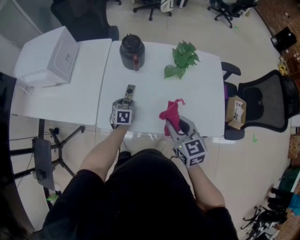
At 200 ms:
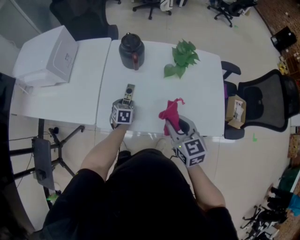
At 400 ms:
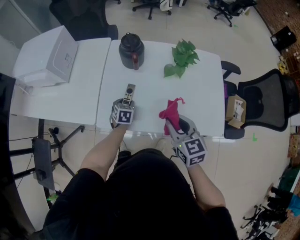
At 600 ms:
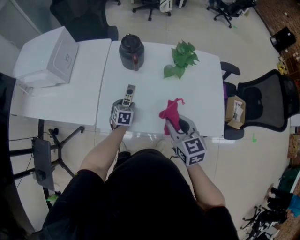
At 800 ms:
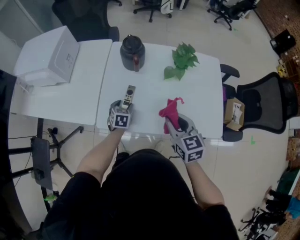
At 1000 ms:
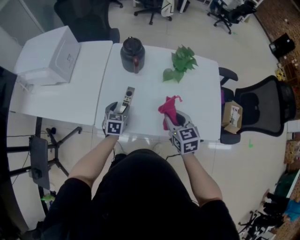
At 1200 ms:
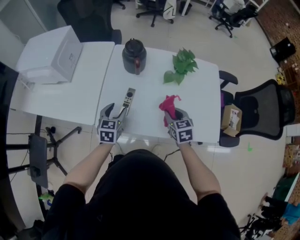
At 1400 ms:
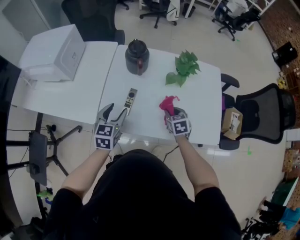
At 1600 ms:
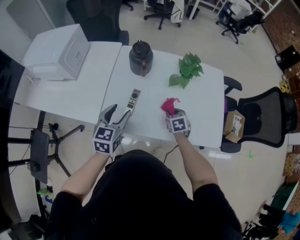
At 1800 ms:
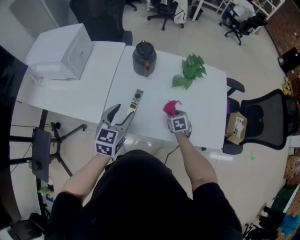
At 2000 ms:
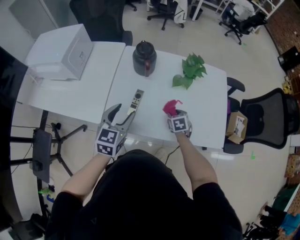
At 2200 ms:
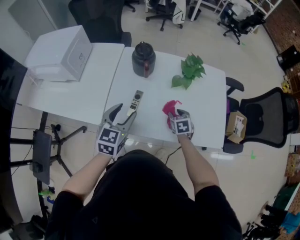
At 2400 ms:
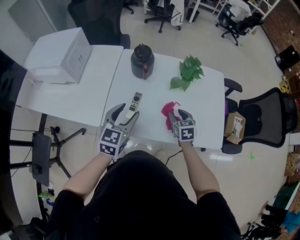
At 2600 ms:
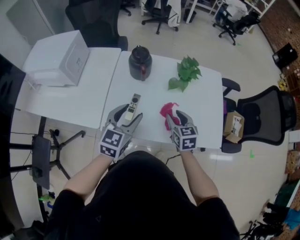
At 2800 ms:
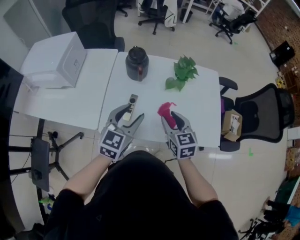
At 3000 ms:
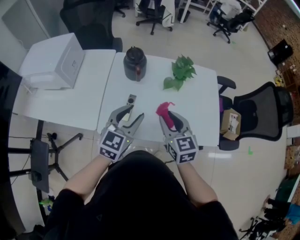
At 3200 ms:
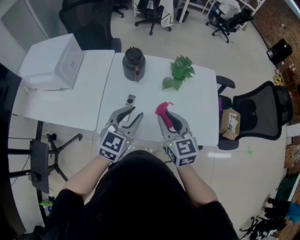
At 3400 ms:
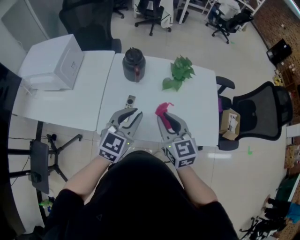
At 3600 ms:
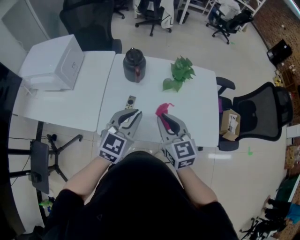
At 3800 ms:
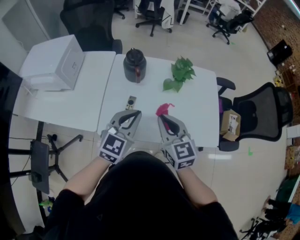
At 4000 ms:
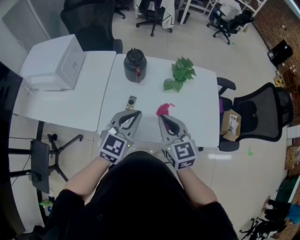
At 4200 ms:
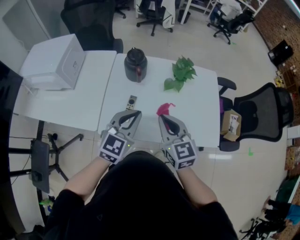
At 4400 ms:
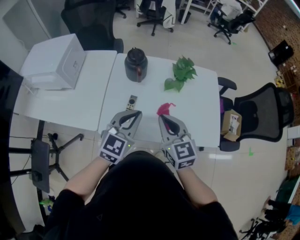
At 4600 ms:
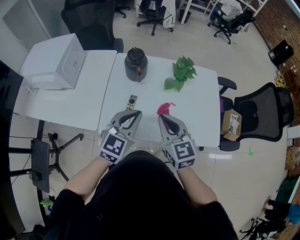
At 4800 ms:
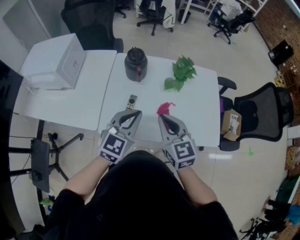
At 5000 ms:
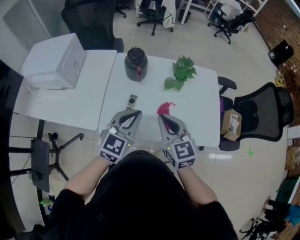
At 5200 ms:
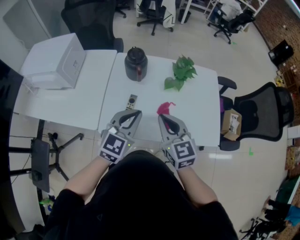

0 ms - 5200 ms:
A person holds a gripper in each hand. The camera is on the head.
0 ms - 1800 ms: The left gripper heads upward, covering some 20 cm, and changes its angle by roughly 30 degrees; the right gripper is displaced downward and forward by roughly 25 cm, and tips its fingers downward by about 30 degrees.
1800 ms - 3400 ms: The left gripper shifts roughly 10 cm to the right and upward, turns by roughly 20 degrees, and closes, while the right gripper is displaced upward by about 25 cm, and angles its fingers upward, by about 40 degrees.
3400 ms - 5200 ms: Both grippers stay about where they are.

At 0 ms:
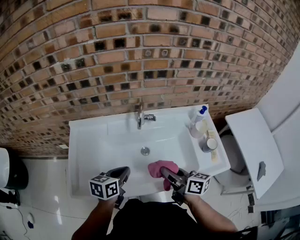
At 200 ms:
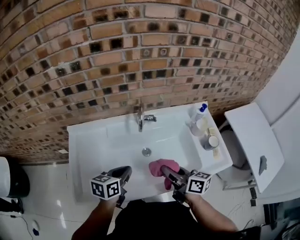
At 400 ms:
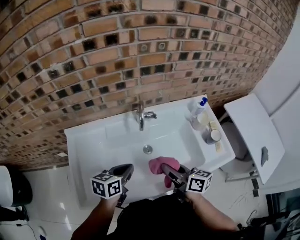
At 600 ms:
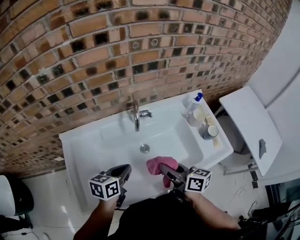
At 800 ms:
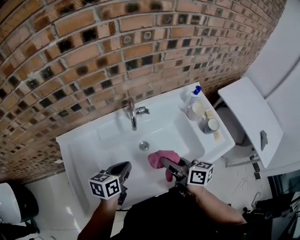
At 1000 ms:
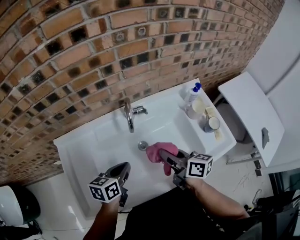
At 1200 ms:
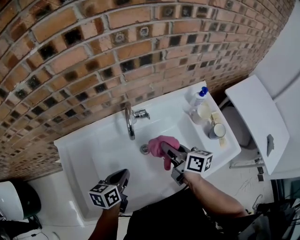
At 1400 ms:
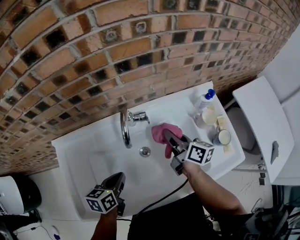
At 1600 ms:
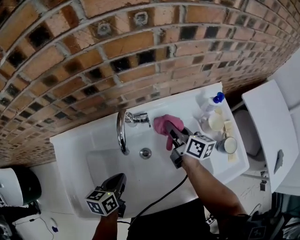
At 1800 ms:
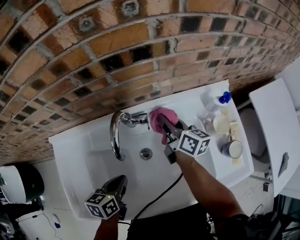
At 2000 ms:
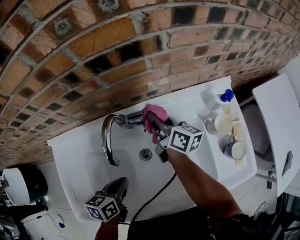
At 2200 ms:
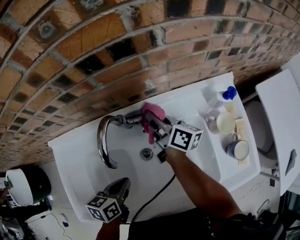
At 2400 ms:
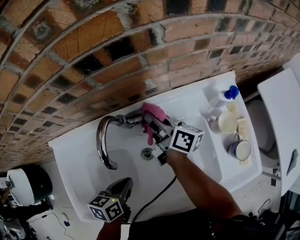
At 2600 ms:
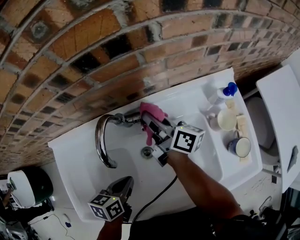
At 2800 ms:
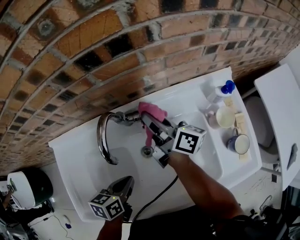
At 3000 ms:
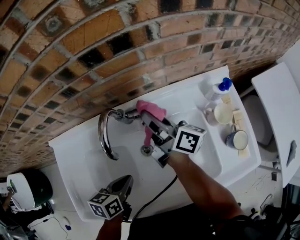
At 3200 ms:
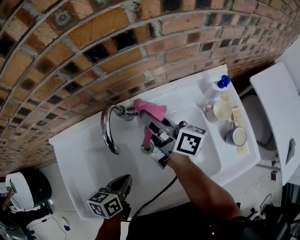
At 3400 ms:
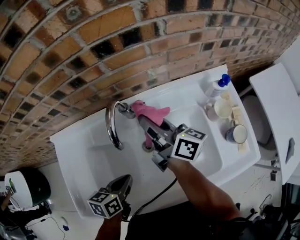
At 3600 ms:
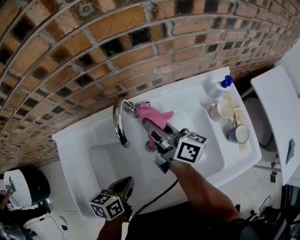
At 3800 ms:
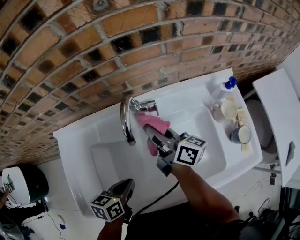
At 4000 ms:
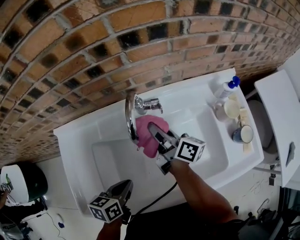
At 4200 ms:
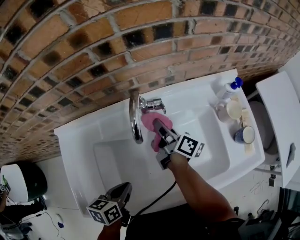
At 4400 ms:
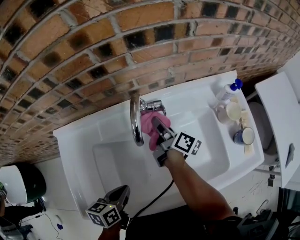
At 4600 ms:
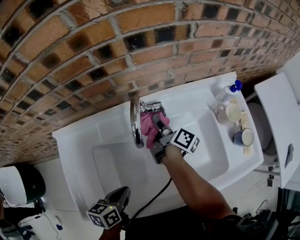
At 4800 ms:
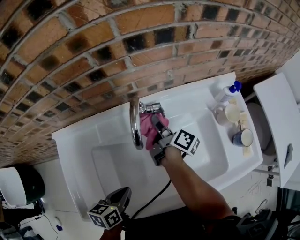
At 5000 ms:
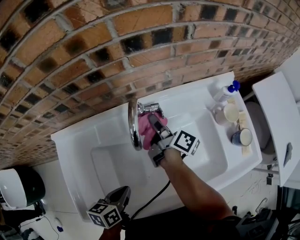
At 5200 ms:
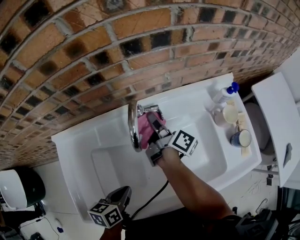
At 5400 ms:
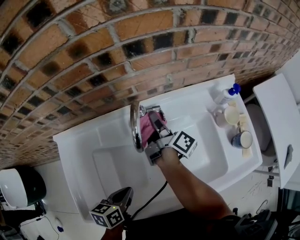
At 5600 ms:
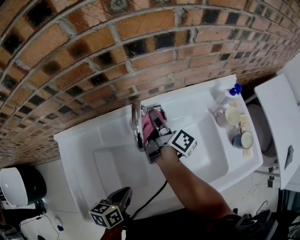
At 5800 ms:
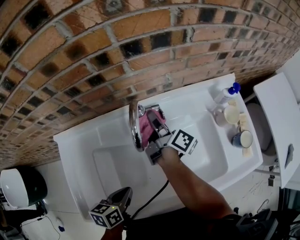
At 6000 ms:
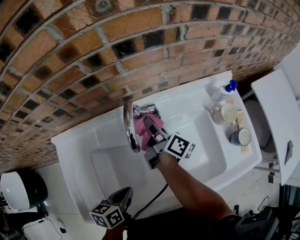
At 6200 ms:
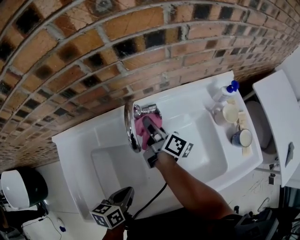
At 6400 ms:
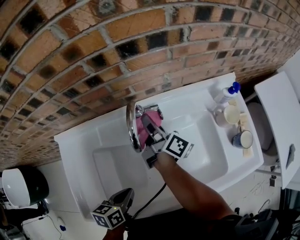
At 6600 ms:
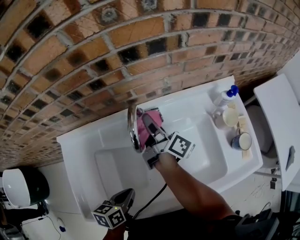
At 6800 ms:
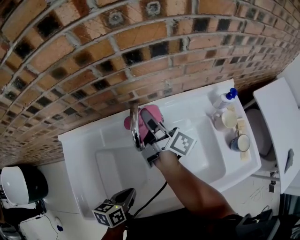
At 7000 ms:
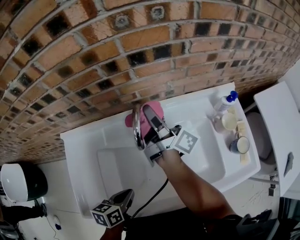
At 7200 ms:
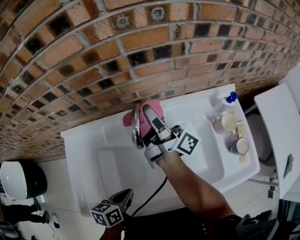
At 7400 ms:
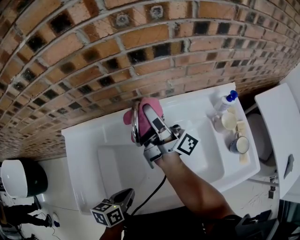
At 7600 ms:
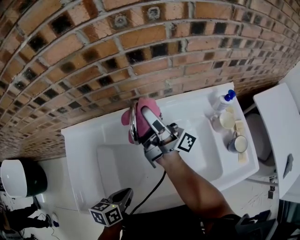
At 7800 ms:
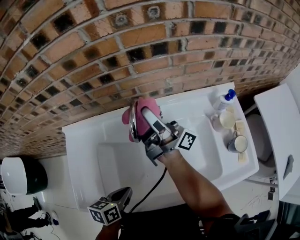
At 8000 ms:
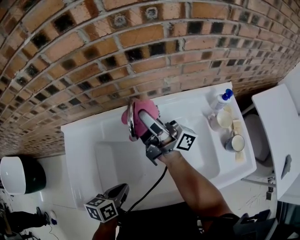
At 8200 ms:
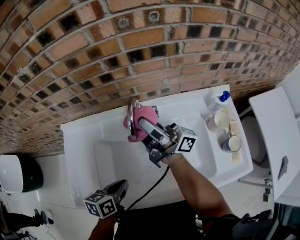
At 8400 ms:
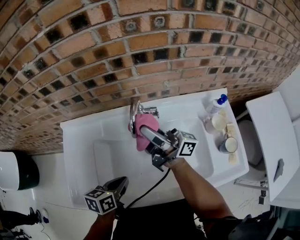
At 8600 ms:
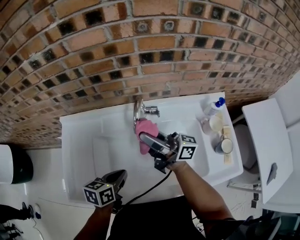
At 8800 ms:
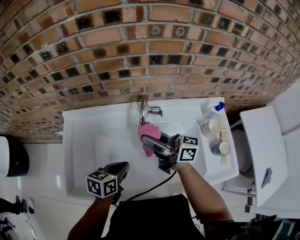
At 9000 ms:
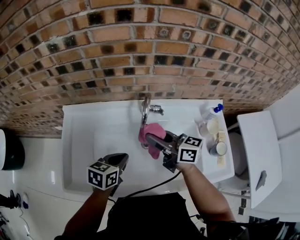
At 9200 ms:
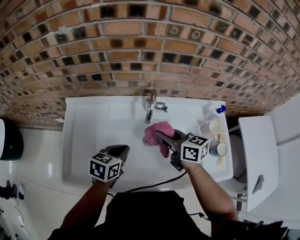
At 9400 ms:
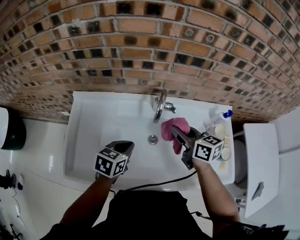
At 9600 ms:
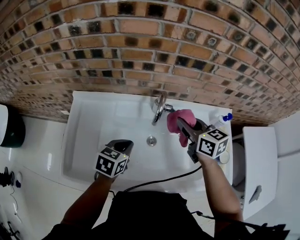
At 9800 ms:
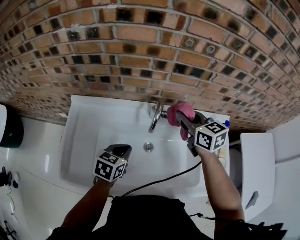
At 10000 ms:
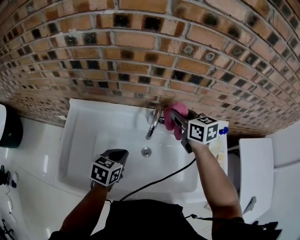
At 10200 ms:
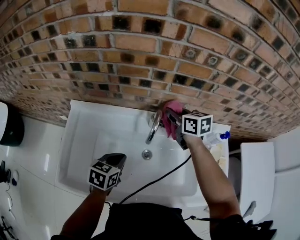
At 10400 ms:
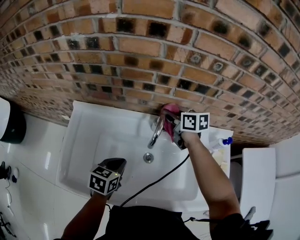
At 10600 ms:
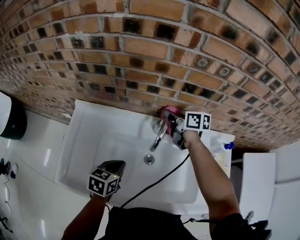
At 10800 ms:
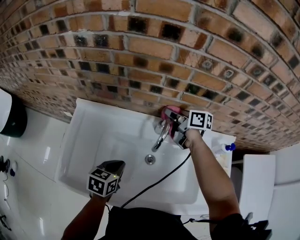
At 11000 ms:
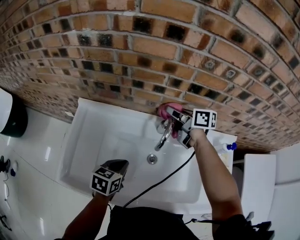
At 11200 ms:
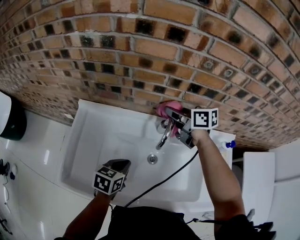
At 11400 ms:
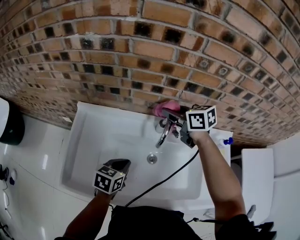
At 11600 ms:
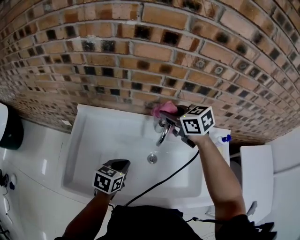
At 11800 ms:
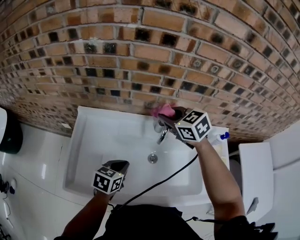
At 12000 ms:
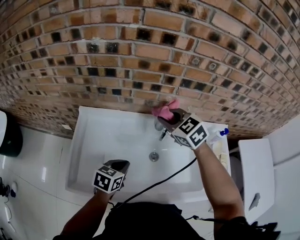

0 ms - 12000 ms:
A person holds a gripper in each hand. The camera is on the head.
0 ms - 1600 ms: The right gripper travels forward by roughly 30 cm. Meanwhile the left gripper moves forward and downward, about 15 cm.
1600 ms - 3000 ms: The right gripper is displaced to the left by about 5 cm, and turns by approximately 20 degrees.
3000 ms - 4400 ms: The left gripper travels to the left and backward by approximately 10 cm; the right gripper goes roughly 10 cm downward.
6000 ms - 7600 ms: The right gripper goes approximately 15 cm upward, and angles its fingers upward, by some 40 degrees.
7600 ms - 9000 ms: The left gripper goes some 10 cm forward and upward. Meanwhile the right gripper travels backward by roughly 10 cm, and angles its fingers downward, by approximately 40 degrees.
9000 ms - 10400 ms: The right gripper is displaced forward by some 20 cm, and changes its angle by approximately 30 degrees.
10400 ms - 12000 ms: The right gripper moves backward, to the left and upward, roughly 15 cm, and rotates around the line of its fingers by approximately 50 degrees, counterclockwise from behind. The left gripper ends up roughly 5 cm from where it was.

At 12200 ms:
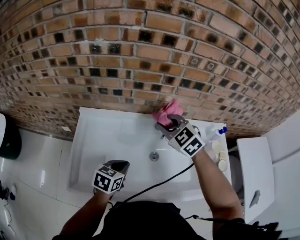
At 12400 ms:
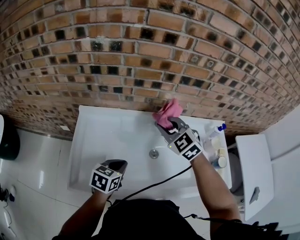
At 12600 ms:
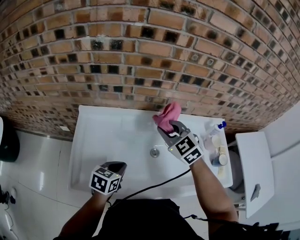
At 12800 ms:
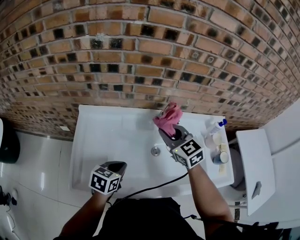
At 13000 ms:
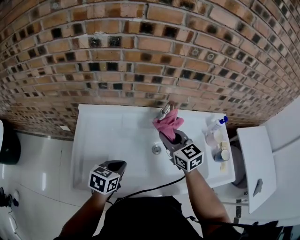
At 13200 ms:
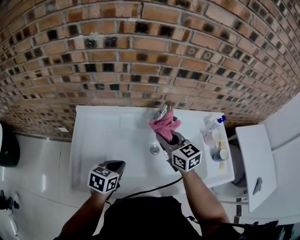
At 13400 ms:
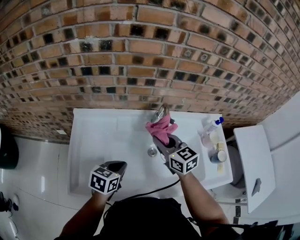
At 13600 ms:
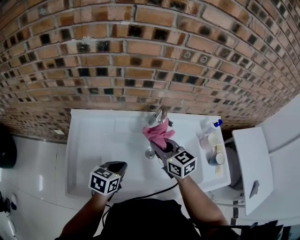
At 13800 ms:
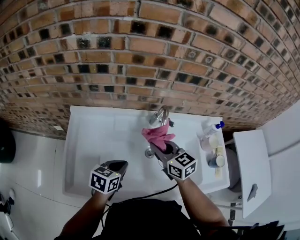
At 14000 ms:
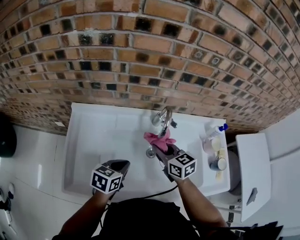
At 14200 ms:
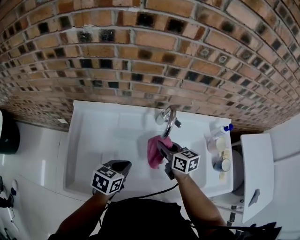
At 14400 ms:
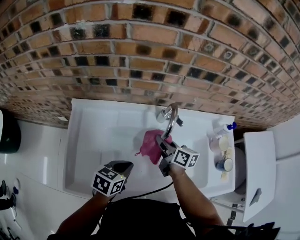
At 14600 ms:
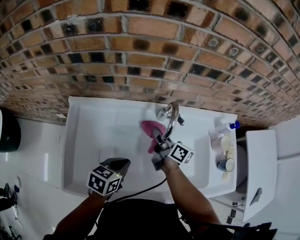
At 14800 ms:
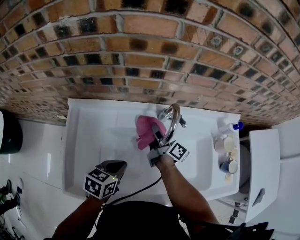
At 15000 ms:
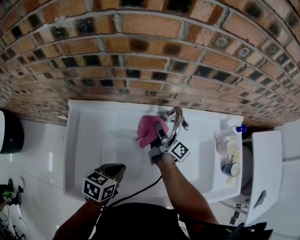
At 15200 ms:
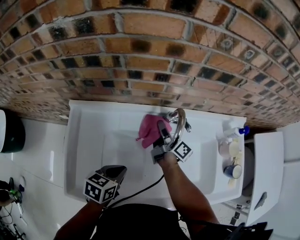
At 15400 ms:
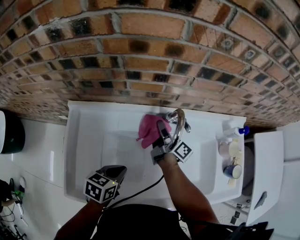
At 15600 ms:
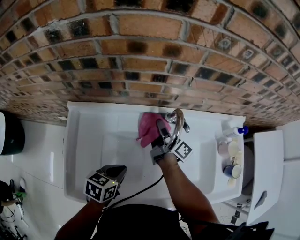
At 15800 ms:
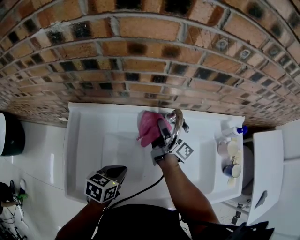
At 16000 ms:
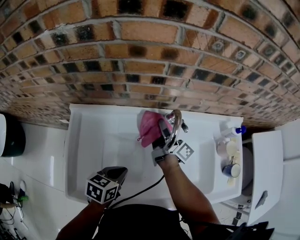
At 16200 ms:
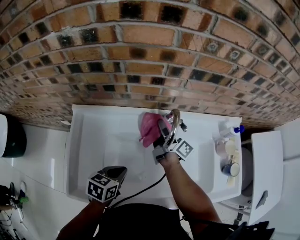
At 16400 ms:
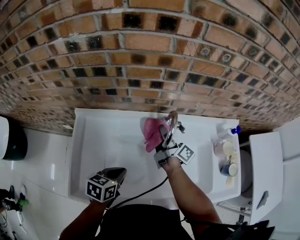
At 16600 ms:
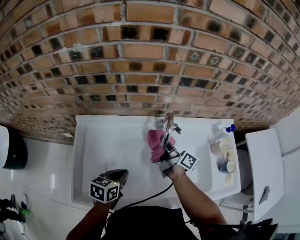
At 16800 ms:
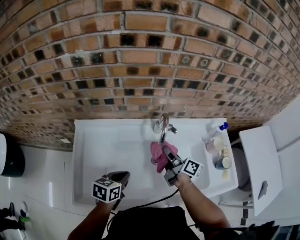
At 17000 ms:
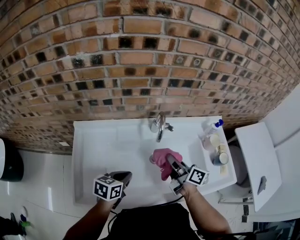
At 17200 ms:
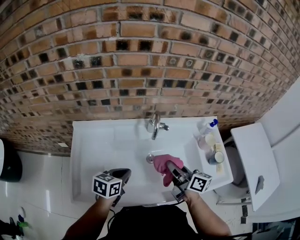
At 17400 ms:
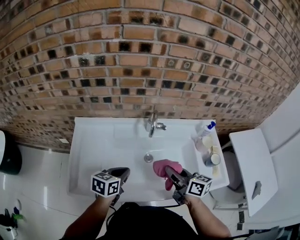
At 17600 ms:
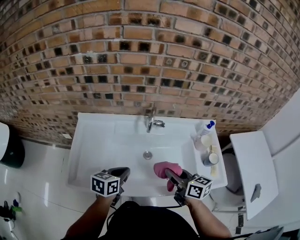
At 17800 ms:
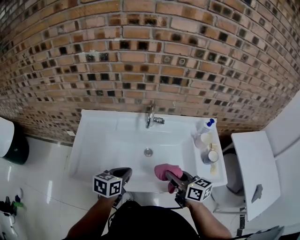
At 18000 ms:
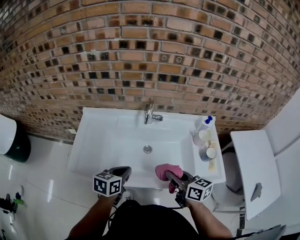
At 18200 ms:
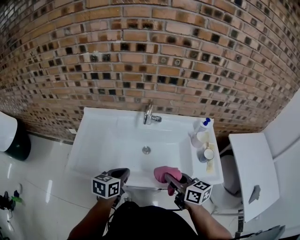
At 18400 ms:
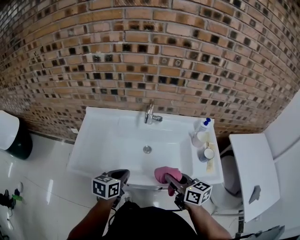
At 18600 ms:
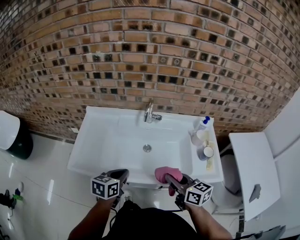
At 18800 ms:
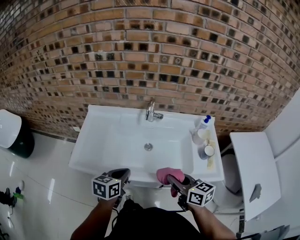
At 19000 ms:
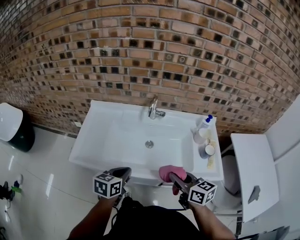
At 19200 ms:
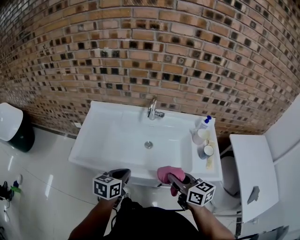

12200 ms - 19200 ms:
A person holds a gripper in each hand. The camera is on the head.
12200 ms - 13600 ms: The right gripper shifts roughly 10 cm downward and backward, and turns by roughly 40 degrees.
13600 ms - 15000 ms: The right gripper is displaced forward and downward by approximately 20 cm, and rotates around the line of its fingers by approximately 70 degrees, clockwise from behind.
15000 ms - 16400 ms: The right gripper goes about 5 cm upward.
16400 ms - 17800 ms: The right gripper is displaced backward and to the right by about 35 cm, and twists approximately 40 degrees counterclockwise, seen from behind. The left gripper heads backward, to the right and upward, covering about 15 cm.
17800 ms - 19200 ms: The two grippers go approximately 10 cm backward.
